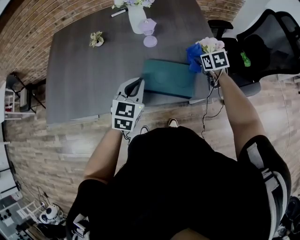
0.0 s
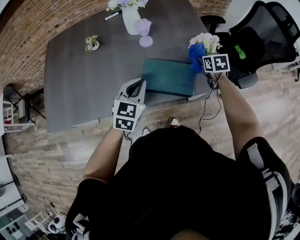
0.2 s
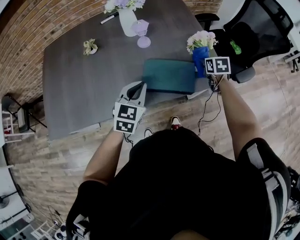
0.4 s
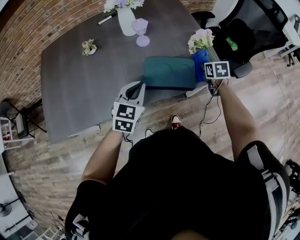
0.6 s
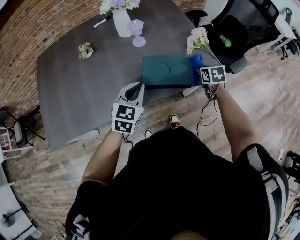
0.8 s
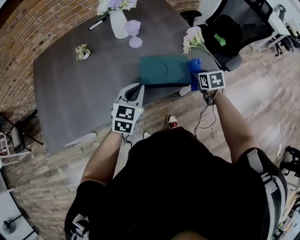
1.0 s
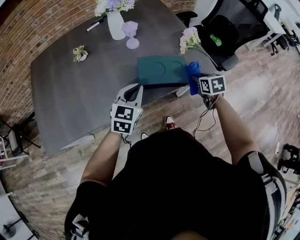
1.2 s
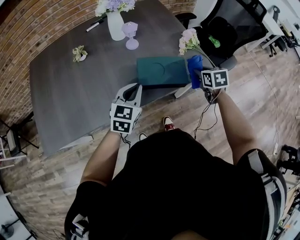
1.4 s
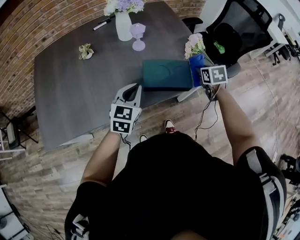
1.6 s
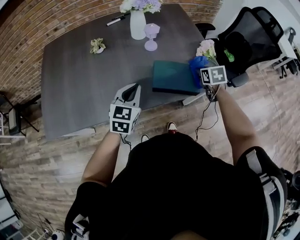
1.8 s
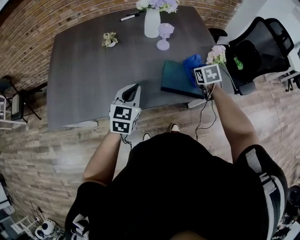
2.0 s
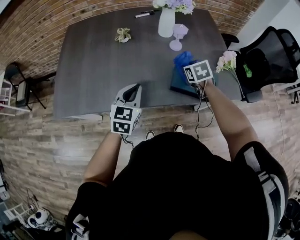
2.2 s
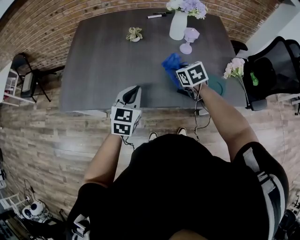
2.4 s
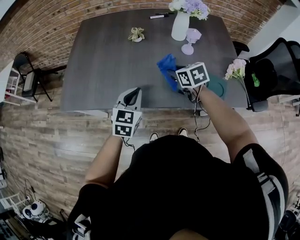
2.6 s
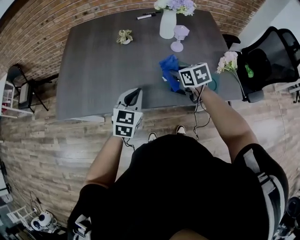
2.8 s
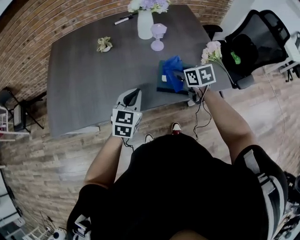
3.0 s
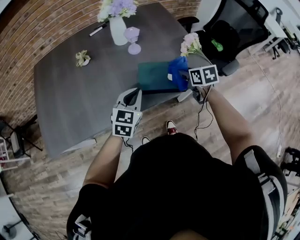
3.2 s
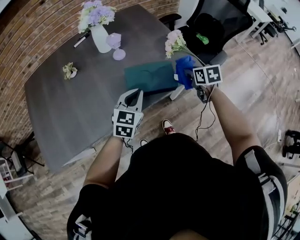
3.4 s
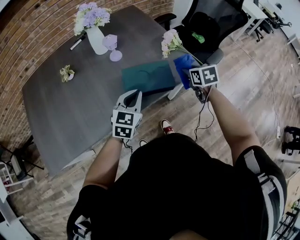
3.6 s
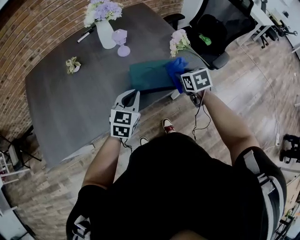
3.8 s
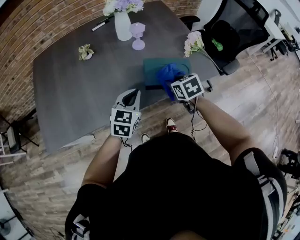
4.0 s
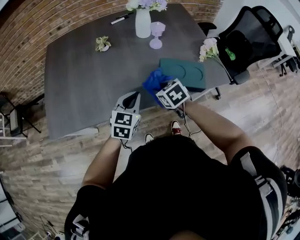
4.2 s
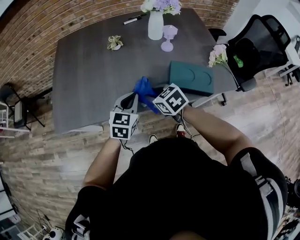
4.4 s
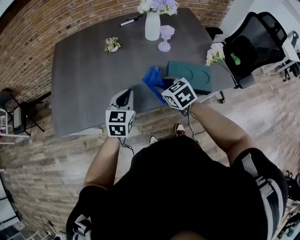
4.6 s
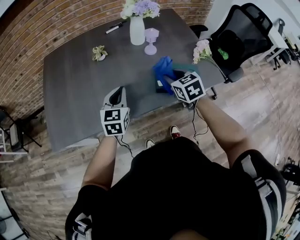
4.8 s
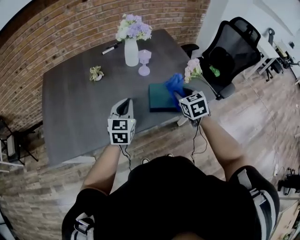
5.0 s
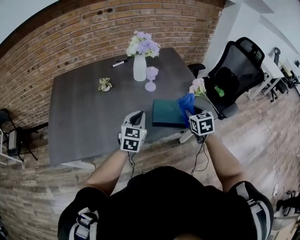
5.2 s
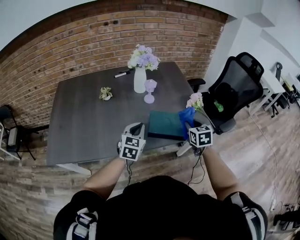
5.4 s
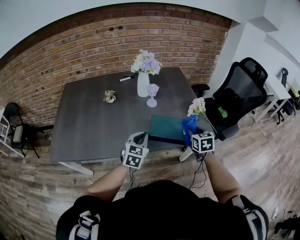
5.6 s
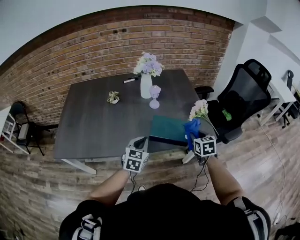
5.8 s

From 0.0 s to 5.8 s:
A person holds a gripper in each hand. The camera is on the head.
From 0.0 s to 1.4 s: The right gripper is displaced backward by some 15 cm, and rotates some 20 degrees.
From 1.4 s to 2.8 s: The left gripper moves roughly 15 cm, and changes its angle by approximately 20 degrees. Meanwhile the right gripper changes place by some 30 cm, and changes its angle by about 40 degrees.
From 4.4 s to 5.8 s: The left gripper changes place by approximately 15 cm, while the right gripper ends up roughly 35 cm from where it was, and changes its angle by approximately 40 degrees.

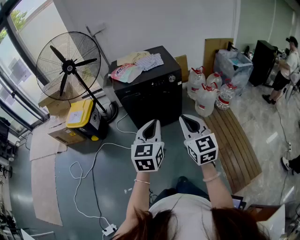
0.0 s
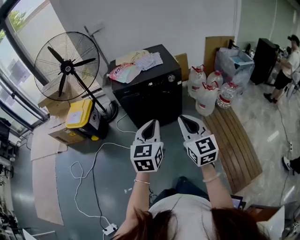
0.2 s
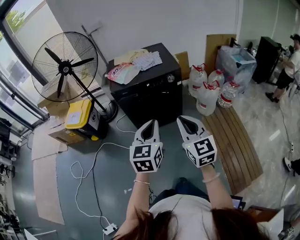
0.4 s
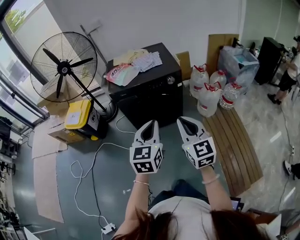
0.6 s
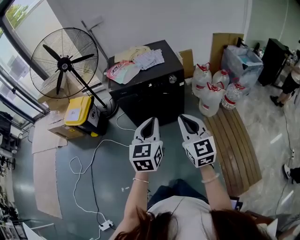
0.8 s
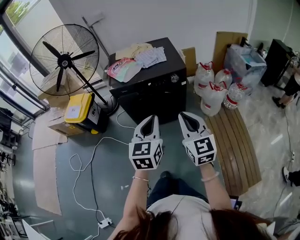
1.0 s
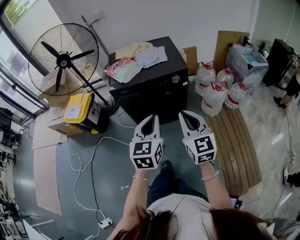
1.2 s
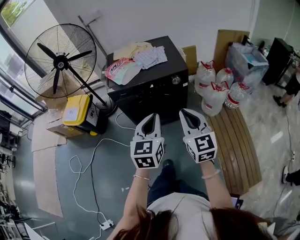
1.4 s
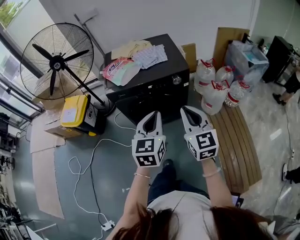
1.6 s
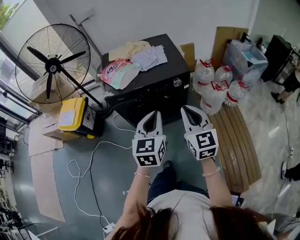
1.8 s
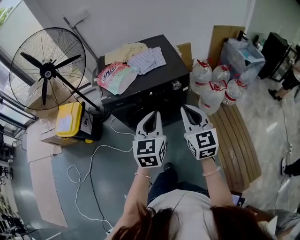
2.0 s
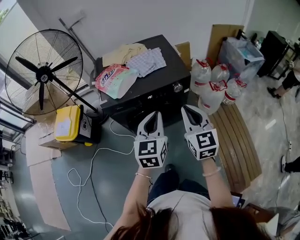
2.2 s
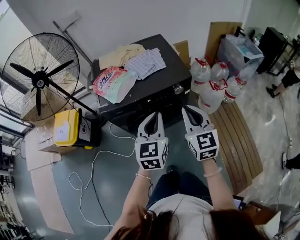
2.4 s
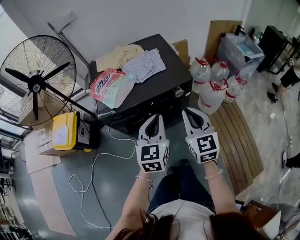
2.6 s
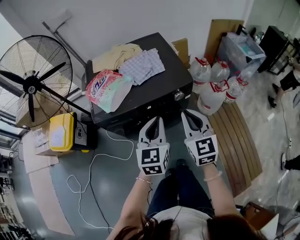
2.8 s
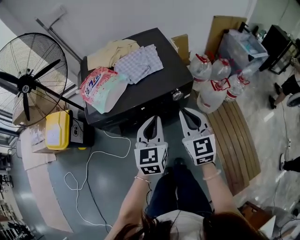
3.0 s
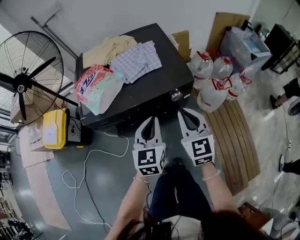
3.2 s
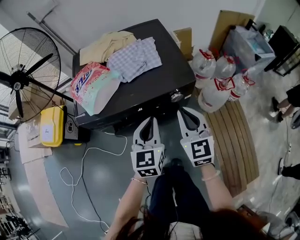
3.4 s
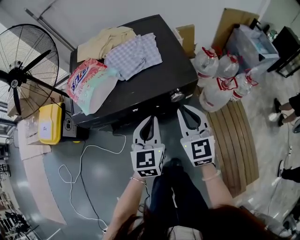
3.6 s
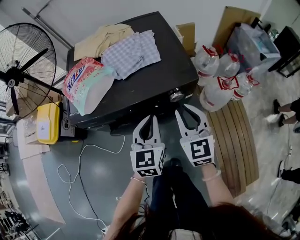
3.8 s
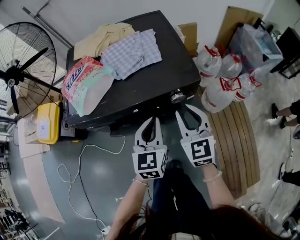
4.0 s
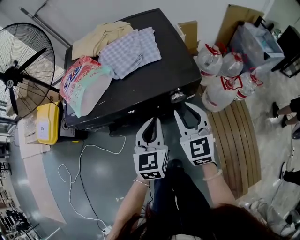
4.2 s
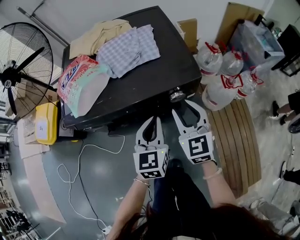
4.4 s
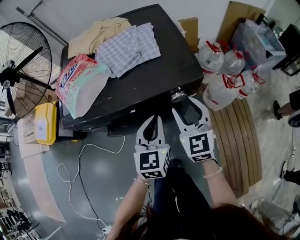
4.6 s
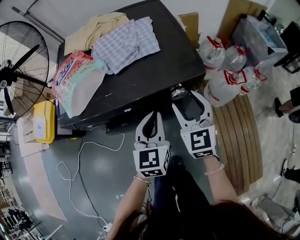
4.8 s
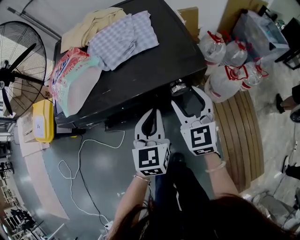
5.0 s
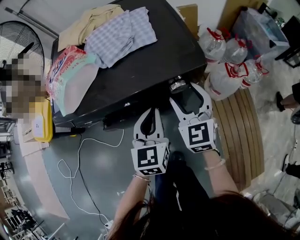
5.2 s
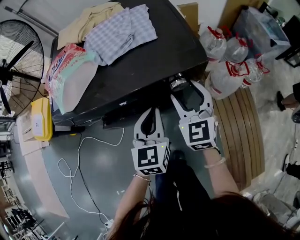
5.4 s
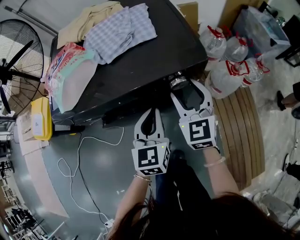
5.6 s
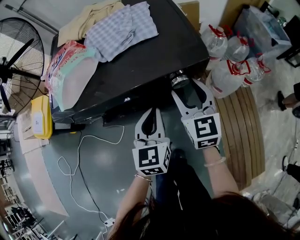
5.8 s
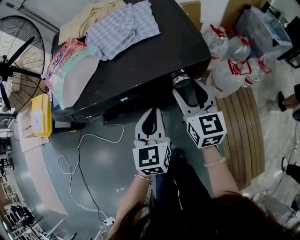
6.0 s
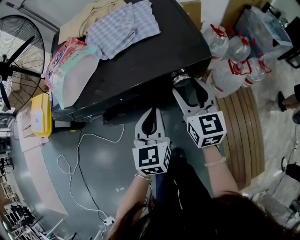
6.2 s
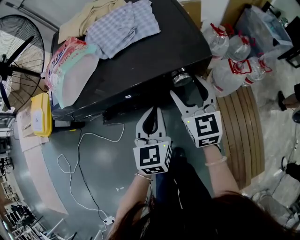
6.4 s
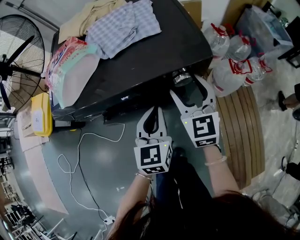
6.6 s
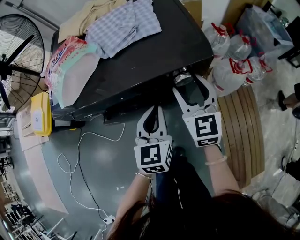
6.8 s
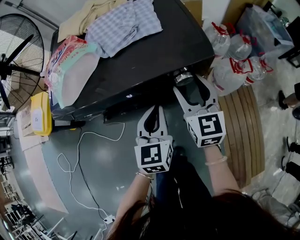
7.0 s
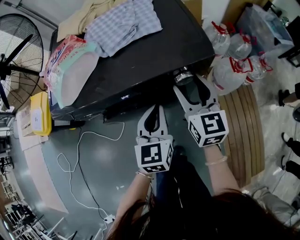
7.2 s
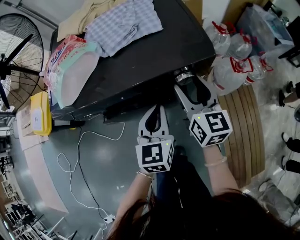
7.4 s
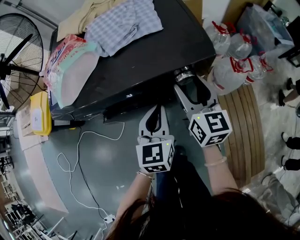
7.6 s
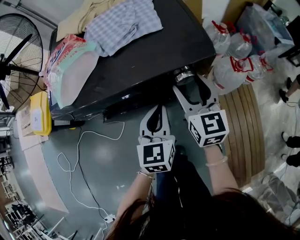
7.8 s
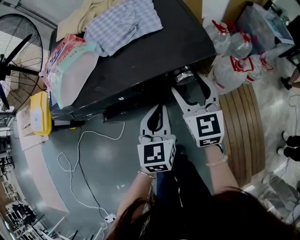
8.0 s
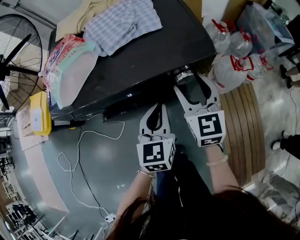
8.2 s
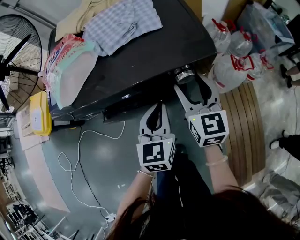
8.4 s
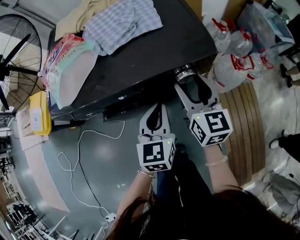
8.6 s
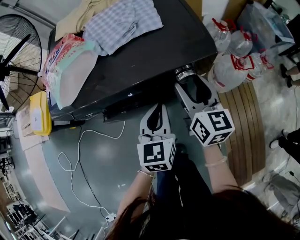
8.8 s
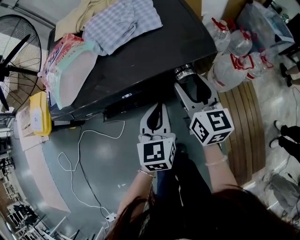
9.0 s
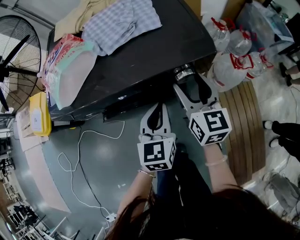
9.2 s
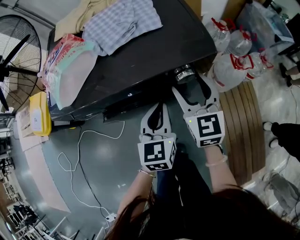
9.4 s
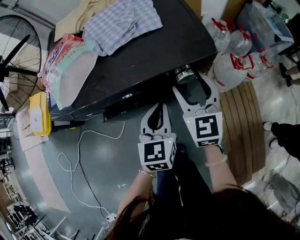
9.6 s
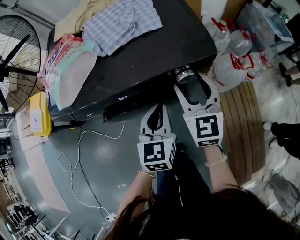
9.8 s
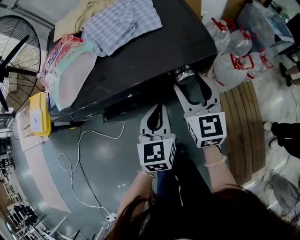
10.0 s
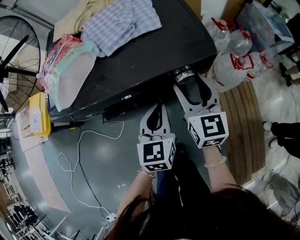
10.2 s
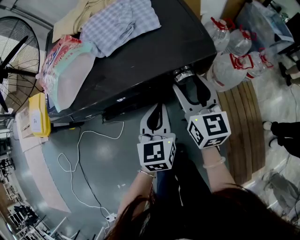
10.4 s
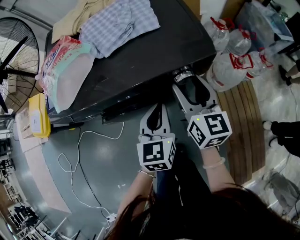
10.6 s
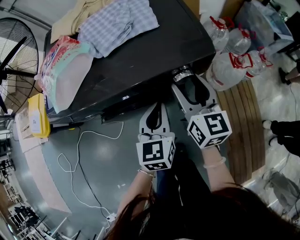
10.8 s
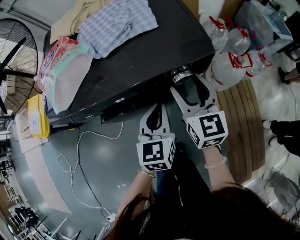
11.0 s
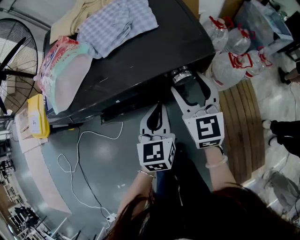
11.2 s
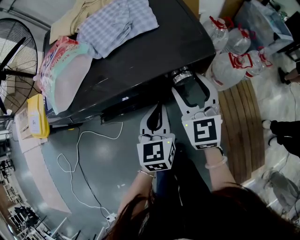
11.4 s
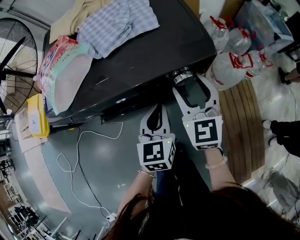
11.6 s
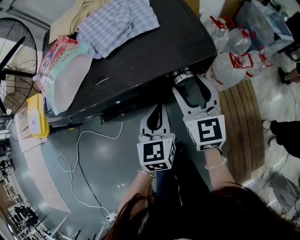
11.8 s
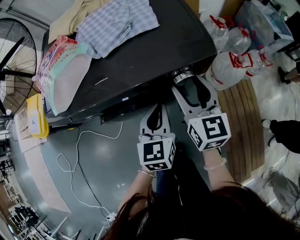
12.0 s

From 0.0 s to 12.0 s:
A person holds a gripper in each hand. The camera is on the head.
From 0.0 s to 1.6 s: The two grippers go some 20 cm forward.
From 1.6 s to 3.0 s: The left gripper is displaced forward and downward by approximately 20 cm; the right gripper travels forward by approximately 20 cm.
From 3.0 s to 4.4 s: Both grippers travel together downward and forward, approximately 15 cm. The right gripper opens.
From 4.4 s to 6.0 s: The right gripper shifts by some 5 cm. The left gripper moves downward, about 5 cm.
From 6.0 s to 7.6 s: The grippers move only a little.

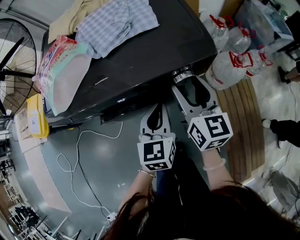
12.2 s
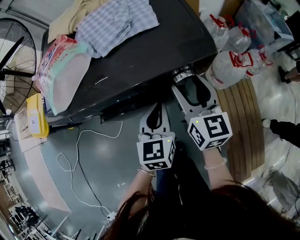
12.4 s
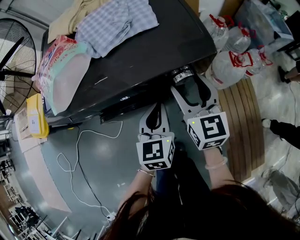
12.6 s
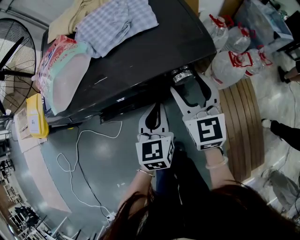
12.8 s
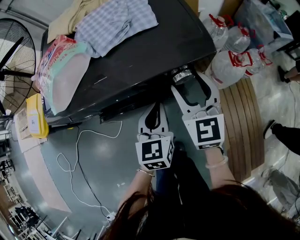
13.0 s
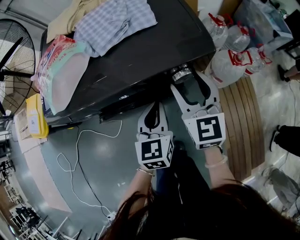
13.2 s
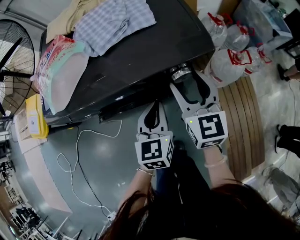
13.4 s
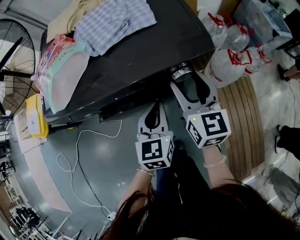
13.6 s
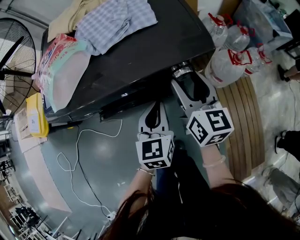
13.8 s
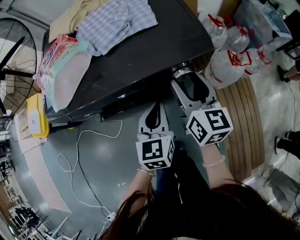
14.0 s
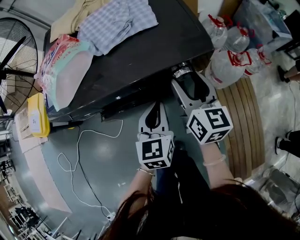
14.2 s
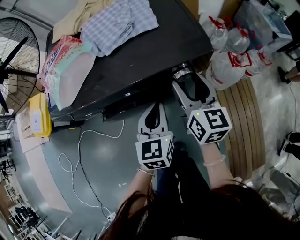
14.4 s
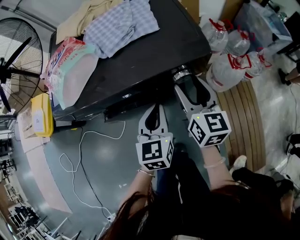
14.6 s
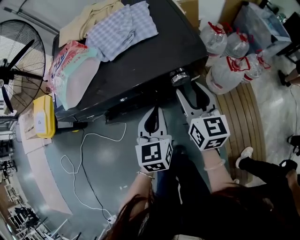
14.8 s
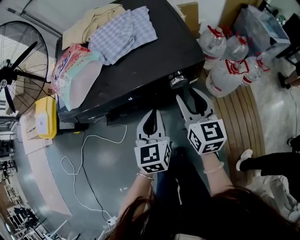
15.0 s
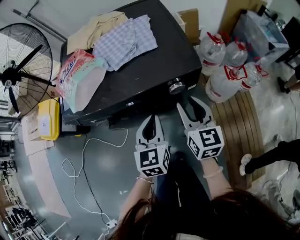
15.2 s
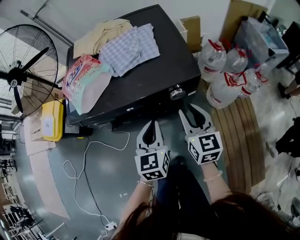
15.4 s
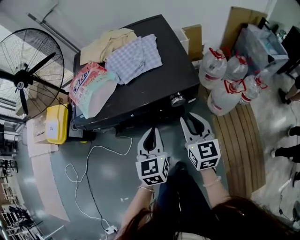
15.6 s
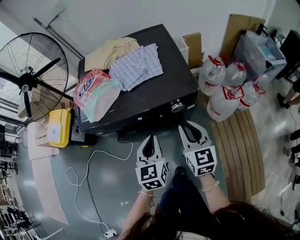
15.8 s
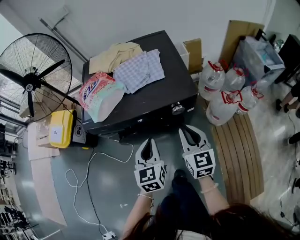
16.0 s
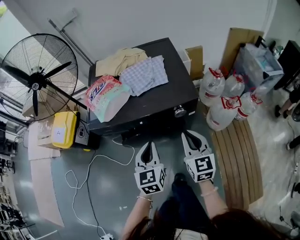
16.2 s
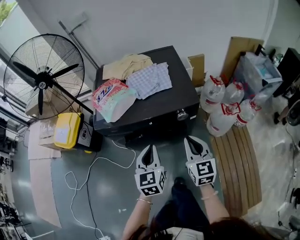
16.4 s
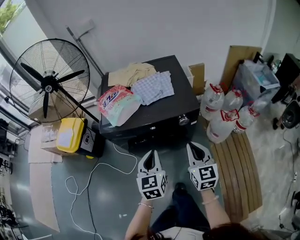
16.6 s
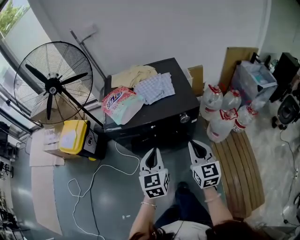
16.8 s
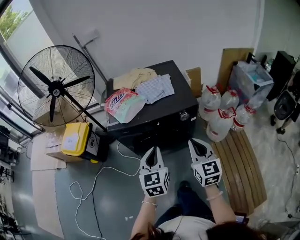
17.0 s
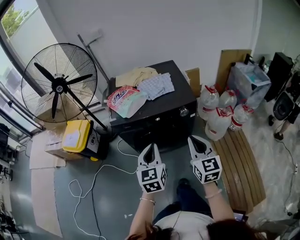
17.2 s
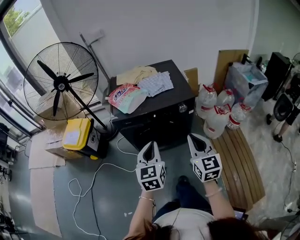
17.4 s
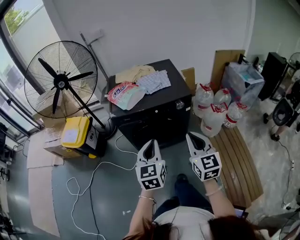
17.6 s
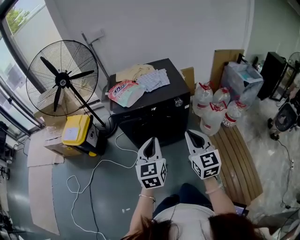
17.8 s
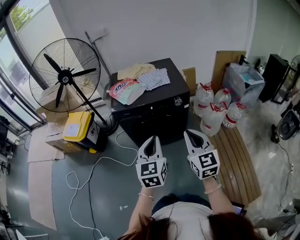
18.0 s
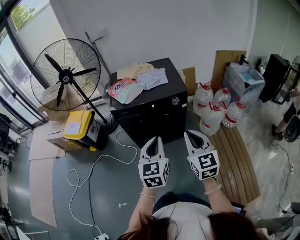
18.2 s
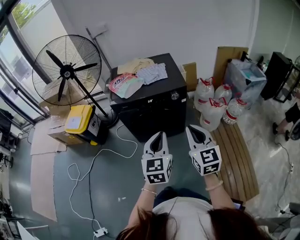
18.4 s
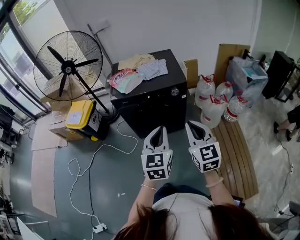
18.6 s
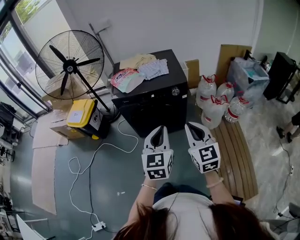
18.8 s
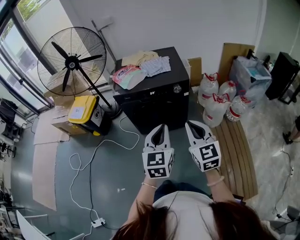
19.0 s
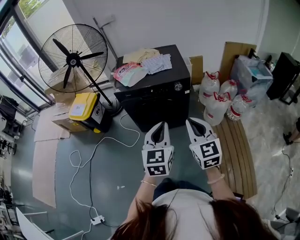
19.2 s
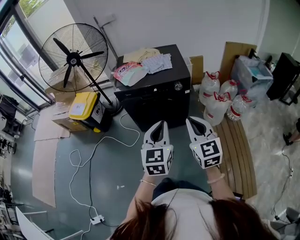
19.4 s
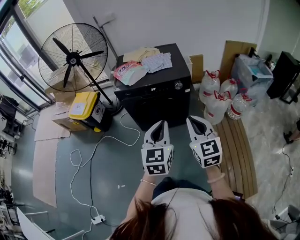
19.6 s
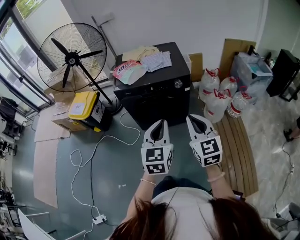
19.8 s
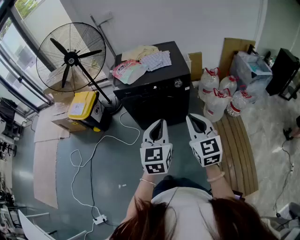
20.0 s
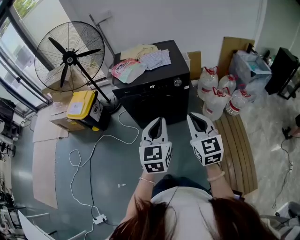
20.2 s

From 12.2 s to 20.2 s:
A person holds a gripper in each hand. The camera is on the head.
From 13.8 s to 15.4 s: The left gripper shifts about 5 cm upward. Meanwhile the right gripper is displaced backward by approximately 5 cm, and closes up.
From 15.4 s to 17.0 s: The right gripper goes approximately 25 cm upward and backward, and closes. Meanwhile the left gripper heads upward, backward and to the left, covering some 25 cm.
From 17.0 s to 18.6 s: Both grippers move backward and upward, roughly 20 cm.
From 18.6 s to 20.2 s: The grippers move only a little.
